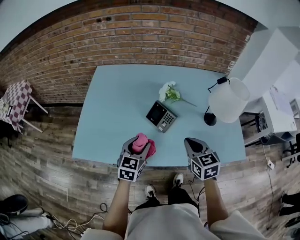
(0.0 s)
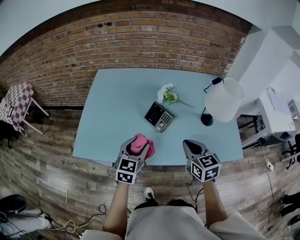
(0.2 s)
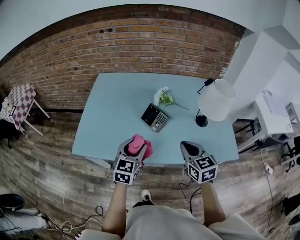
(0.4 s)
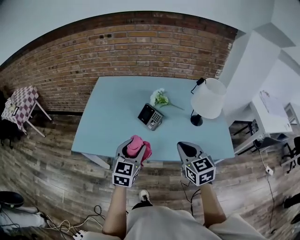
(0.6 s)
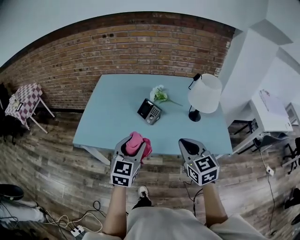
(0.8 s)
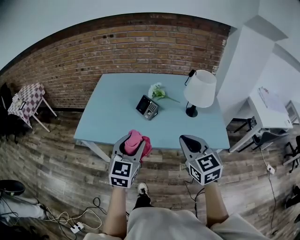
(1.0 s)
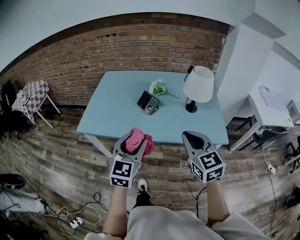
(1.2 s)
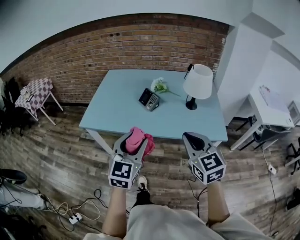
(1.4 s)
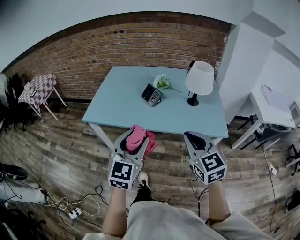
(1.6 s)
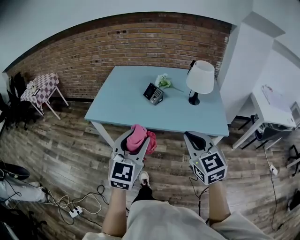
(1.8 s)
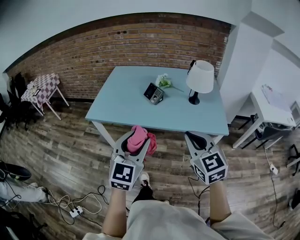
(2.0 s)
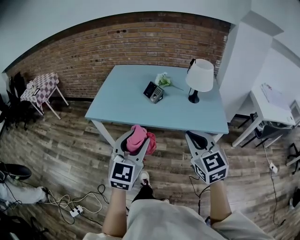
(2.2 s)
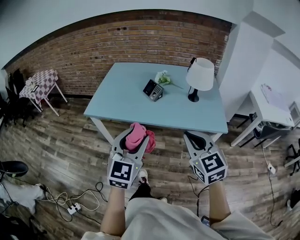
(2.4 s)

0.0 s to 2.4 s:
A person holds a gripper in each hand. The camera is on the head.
0.0 to 1.2 s: The two grippers go about 30 cm backward and upward.
1.2 to 2.4 s: The grippers both shift backward by about 10 cm.

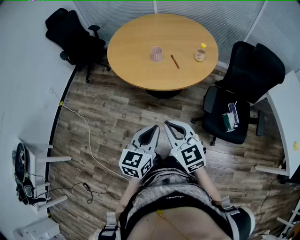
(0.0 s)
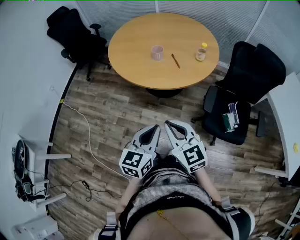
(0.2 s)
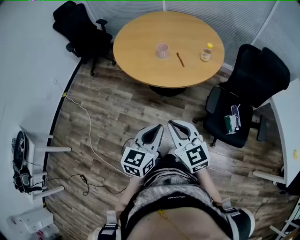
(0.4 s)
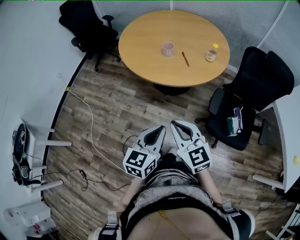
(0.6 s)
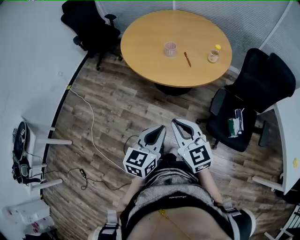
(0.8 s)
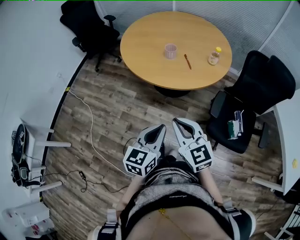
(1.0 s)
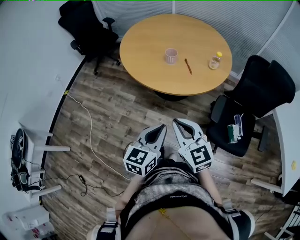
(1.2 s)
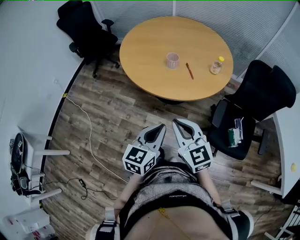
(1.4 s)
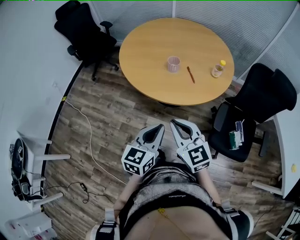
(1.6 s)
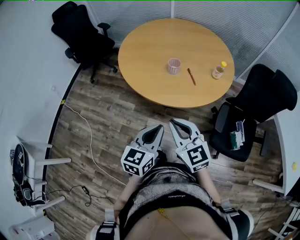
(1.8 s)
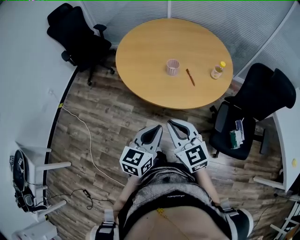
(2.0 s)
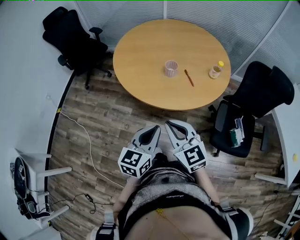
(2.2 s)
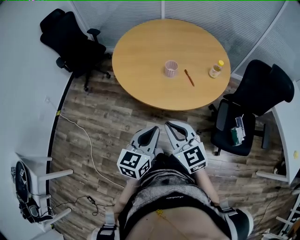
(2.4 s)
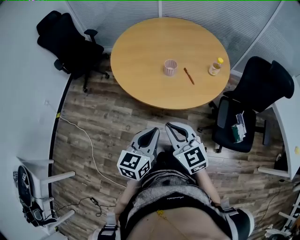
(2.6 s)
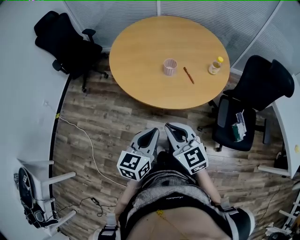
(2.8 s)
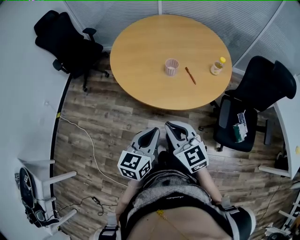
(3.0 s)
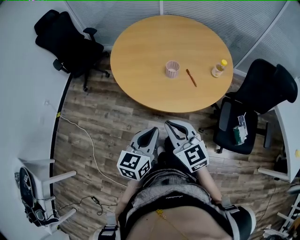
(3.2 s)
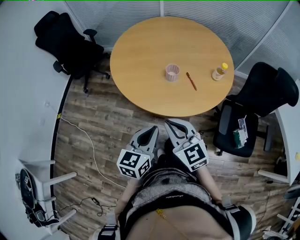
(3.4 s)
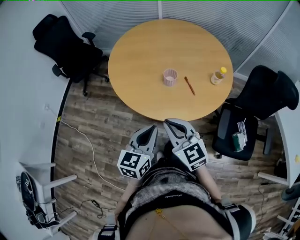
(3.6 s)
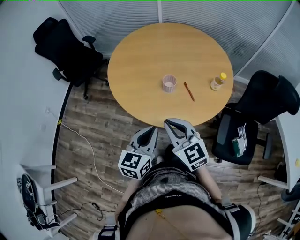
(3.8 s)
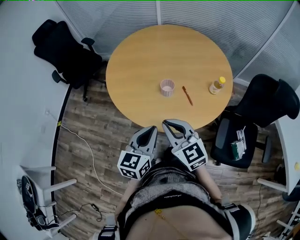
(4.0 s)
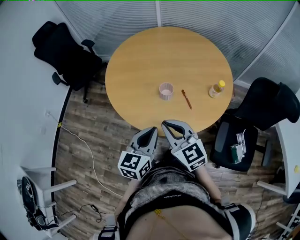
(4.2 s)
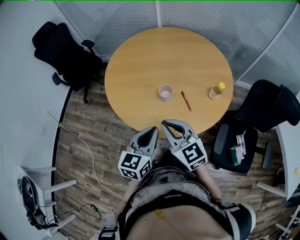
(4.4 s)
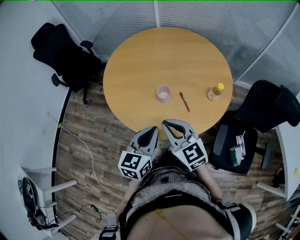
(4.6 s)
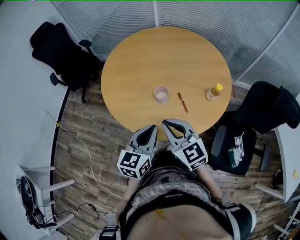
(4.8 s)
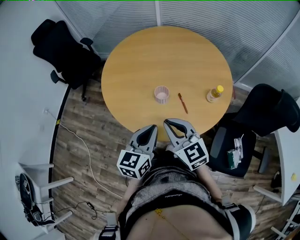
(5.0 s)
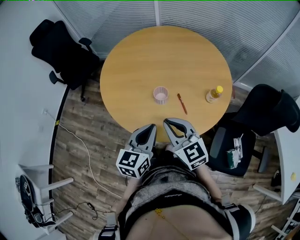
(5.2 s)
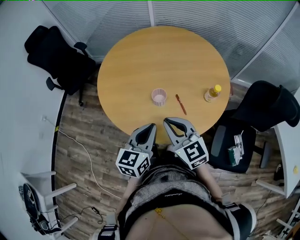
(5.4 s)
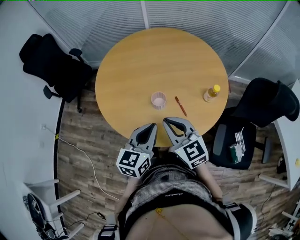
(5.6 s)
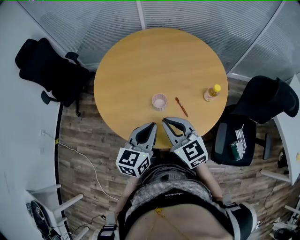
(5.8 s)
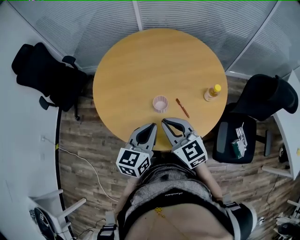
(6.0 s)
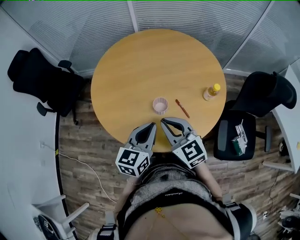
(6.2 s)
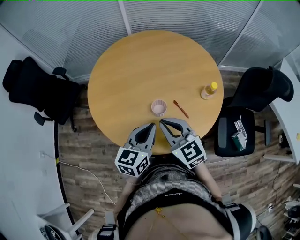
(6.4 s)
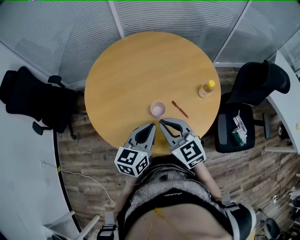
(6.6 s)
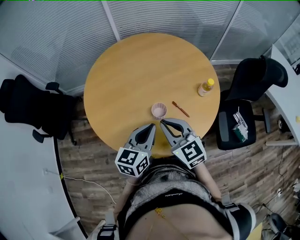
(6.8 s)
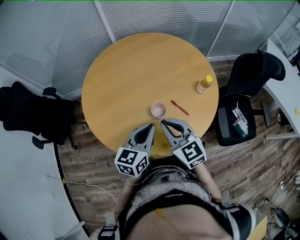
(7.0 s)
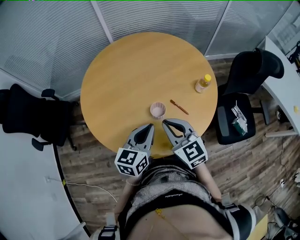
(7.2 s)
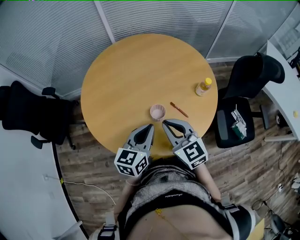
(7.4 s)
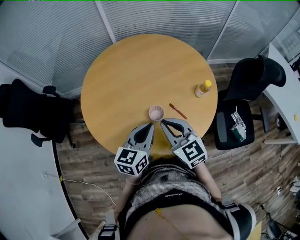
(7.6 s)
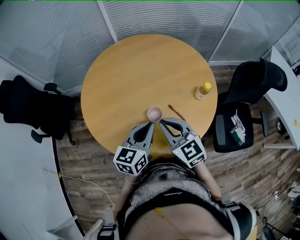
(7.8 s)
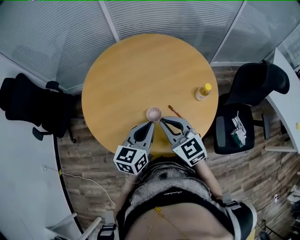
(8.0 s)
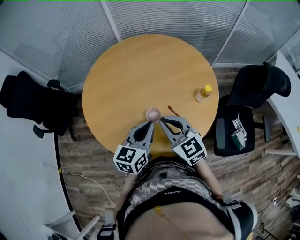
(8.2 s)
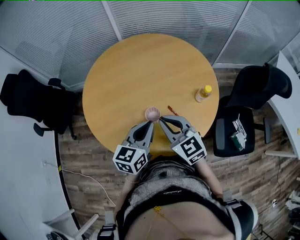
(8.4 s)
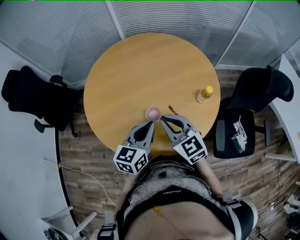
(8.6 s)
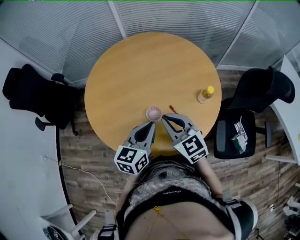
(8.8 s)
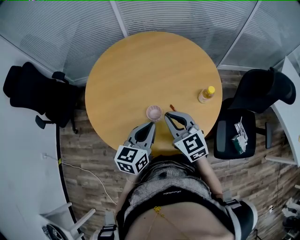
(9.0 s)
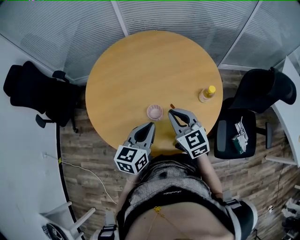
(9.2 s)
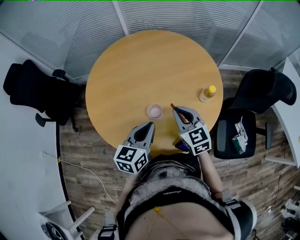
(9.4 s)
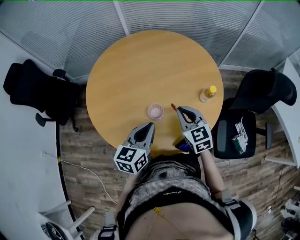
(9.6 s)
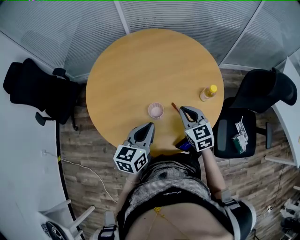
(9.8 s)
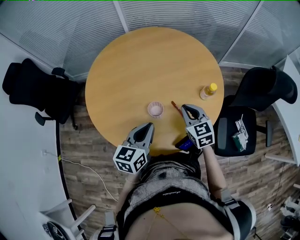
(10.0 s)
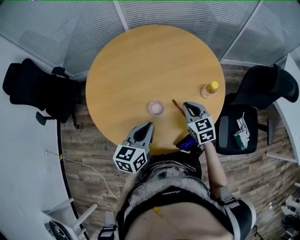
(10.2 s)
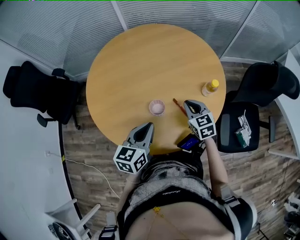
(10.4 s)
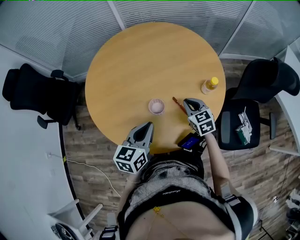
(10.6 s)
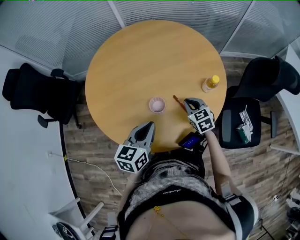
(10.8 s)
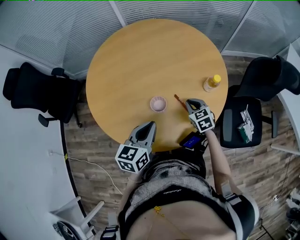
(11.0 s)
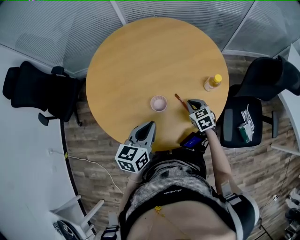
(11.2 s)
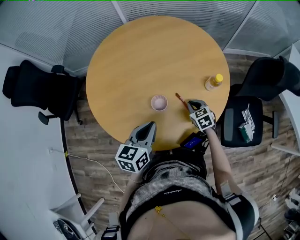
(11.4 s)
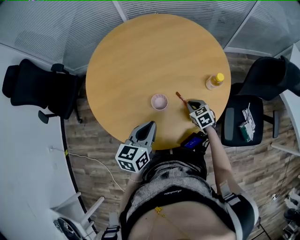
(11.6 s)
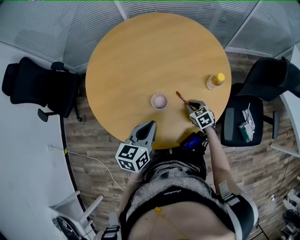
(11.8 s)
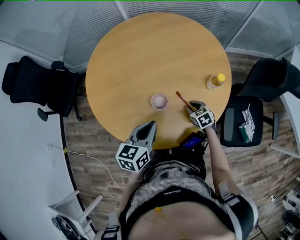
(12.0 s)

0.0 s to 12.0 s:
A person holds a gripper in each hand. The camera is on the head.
0.0 to 1.6 s: Both grippers move forward, approximately 10 cm.
1.6 to 3.0 s: The left gripper is displaced to the left and forward by approximately 10 cm; the right gripper heads forward and to the left, covering approximately 10 cm.
3.0 to 4.4 s: The right gripper goes roughly 15 cm forward. Meanwhile the left gripper heads forward and to the right, covering about 20 cm.
4.4 to 6.0 s: Both grippers move forward, about 10 cm.
6.0 to 7.6 s: The grippers both shift forward by approximately 5 cm.
7.6 to 9.0 s: The right gripper heads to the right, covering approximately 5 cm.
9.0 to 10.4 s: The right gripper moves downward, to the right and forward, about 15 cm.
10.4 to 12.0 s: The right gripper travels downward by about 15 cm, changes its angle by roughly 20 degrees, and opens its fingers.

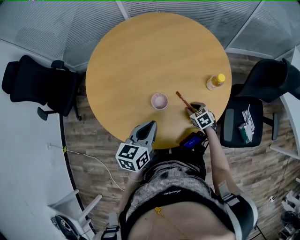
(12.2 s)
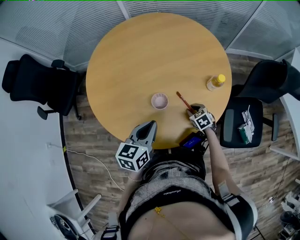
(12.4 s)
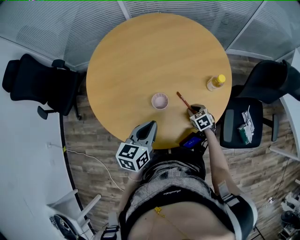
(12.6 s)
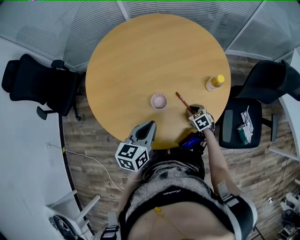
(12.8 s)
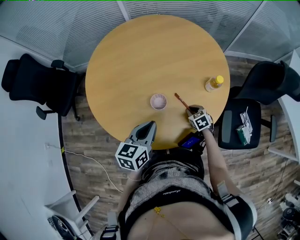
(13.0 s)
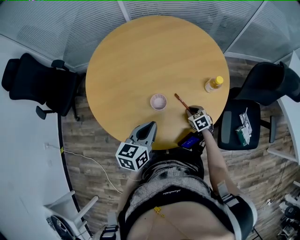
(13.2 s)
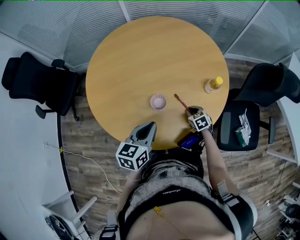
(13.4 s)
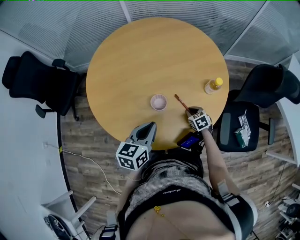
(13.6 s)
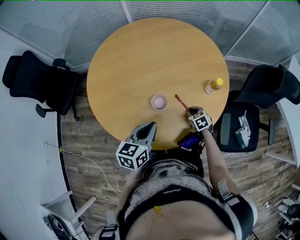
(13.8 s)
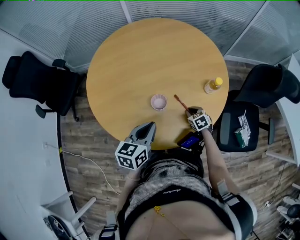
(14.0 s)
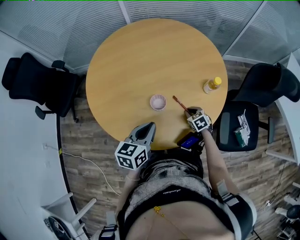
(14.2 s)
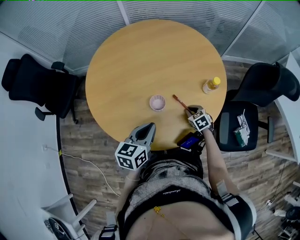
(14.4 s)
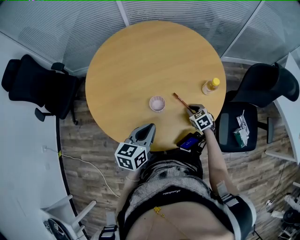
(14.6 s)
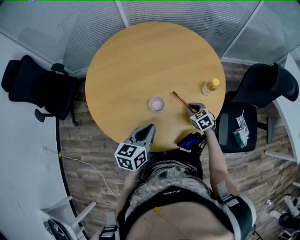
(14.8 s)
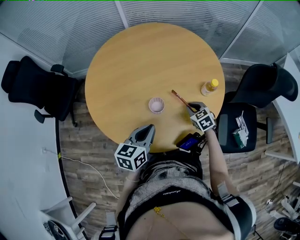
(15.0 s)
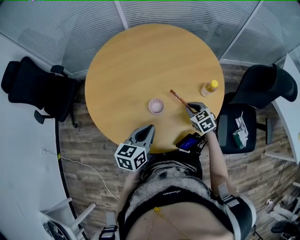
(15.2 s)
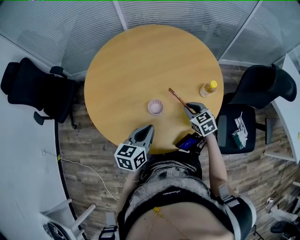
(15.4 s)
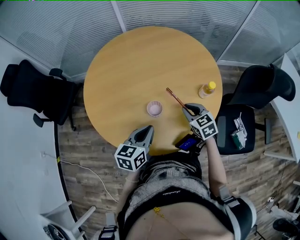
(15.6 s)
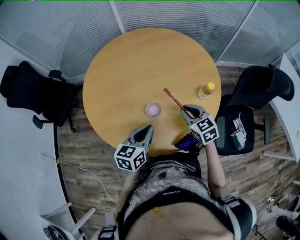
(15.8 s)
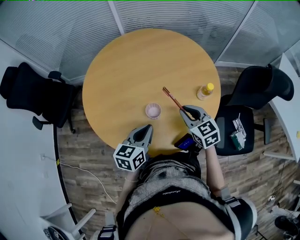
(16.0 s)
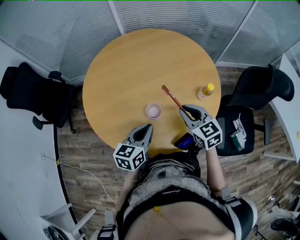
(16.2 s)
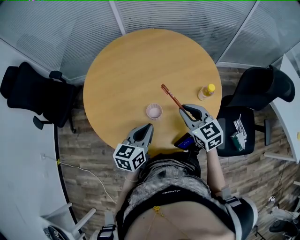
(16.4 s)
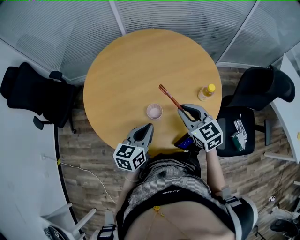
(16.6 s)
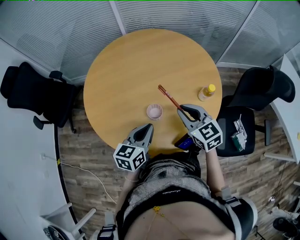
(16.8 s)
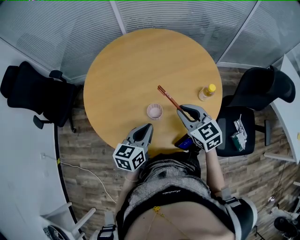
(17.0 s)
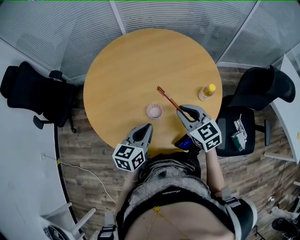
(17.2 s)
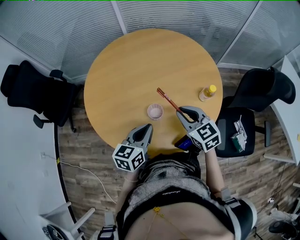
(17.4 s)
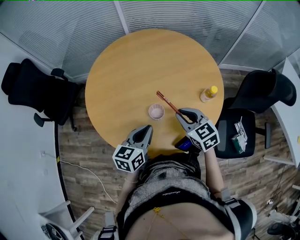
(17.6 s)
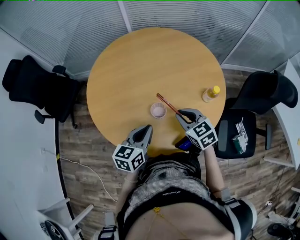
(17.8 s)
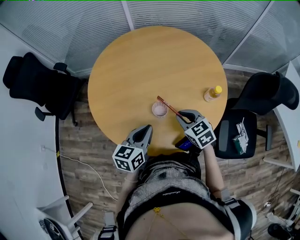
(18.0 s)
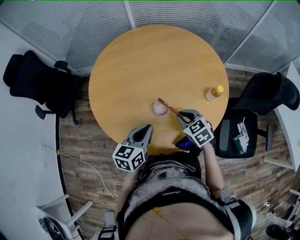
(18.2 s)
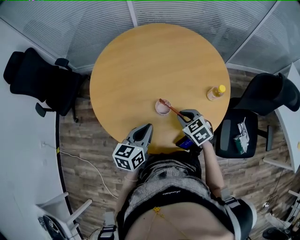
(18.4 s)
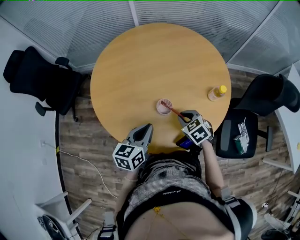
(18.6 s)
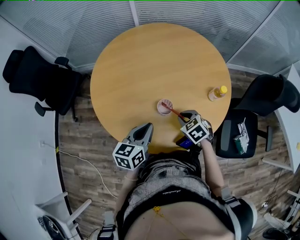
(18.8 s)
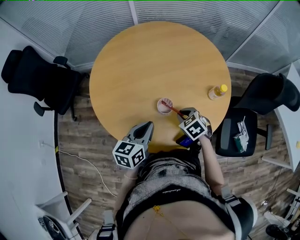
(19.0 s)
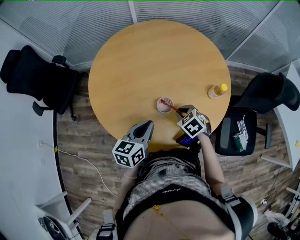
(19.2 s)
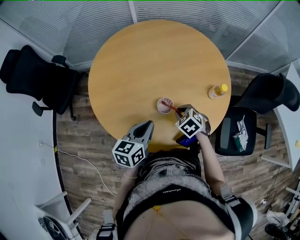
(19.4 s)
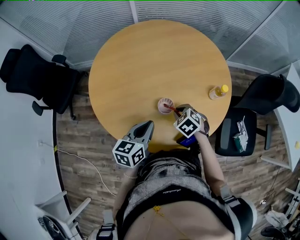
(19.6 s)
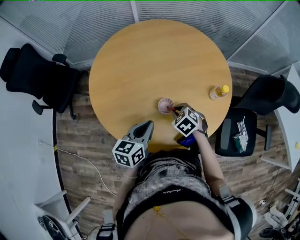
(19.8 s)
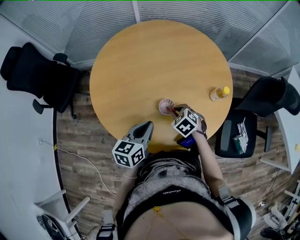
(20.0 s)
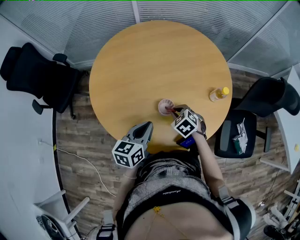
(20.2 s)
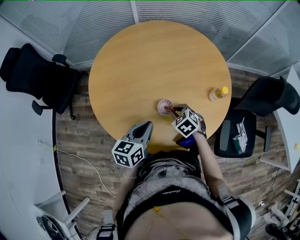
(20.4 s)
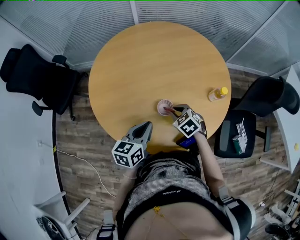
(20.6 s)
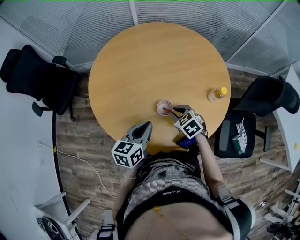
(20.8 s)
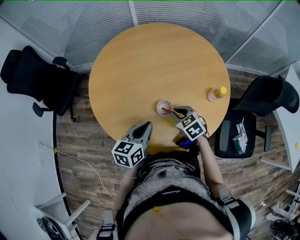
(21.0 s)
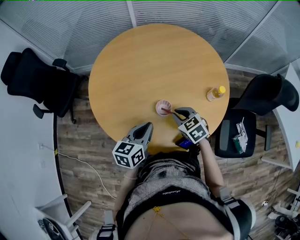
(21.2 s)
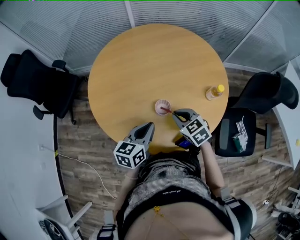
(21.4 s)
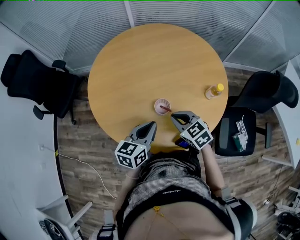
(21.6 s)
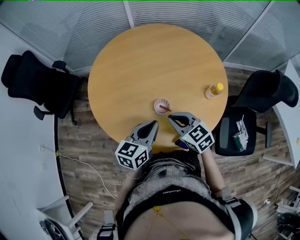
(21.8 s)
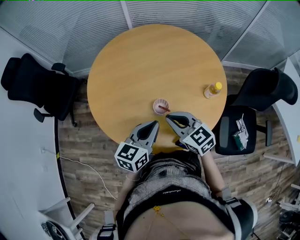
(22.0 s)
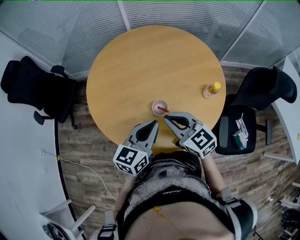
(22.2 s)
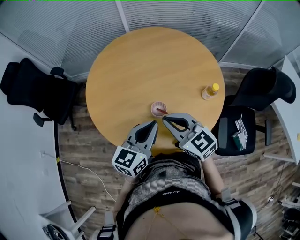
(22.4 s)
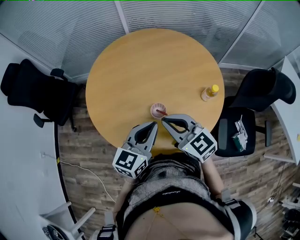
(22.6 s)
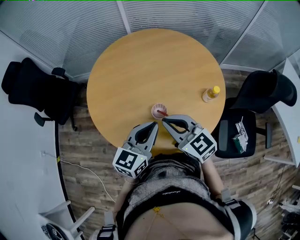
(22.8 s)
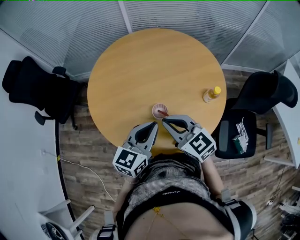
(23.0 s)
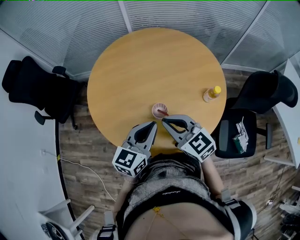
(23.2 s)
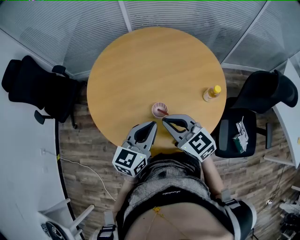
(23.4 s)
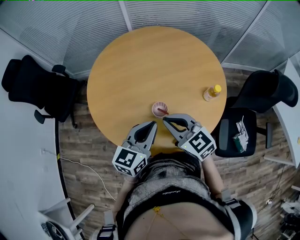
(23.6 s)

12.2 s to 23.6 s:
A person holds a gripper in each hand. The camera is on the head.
12.2 to 13.6 s: There are only small adjustments of the grippers.
13.6 to 15.0 s: The right gripper is displaced upward by roughly 10 cm.
15.0 to 16.4 s: The right gripper moves upward, approximately 20 cm, and swivels roughly 20 degrees.
16.4 to 17.8 s: The right gripper moves about 5 cm.
17.8 to 19.4 s: The right gripper goes approximately 10 cm downward, and turns by about 30 degrees.
19.4 to 20.8 s: There are only small adjustments of the grippers.
20.8 to 22.2 s: The right gripper goes approximately 15 cm upward, and tilts its fingers approximately 30 degrees upward; the left gripper travels upward and to the right by approximately 10 cm.
22.2 to 23.6 s: There are only small adjustments of the grippers.
